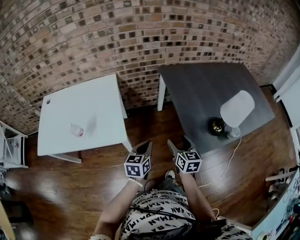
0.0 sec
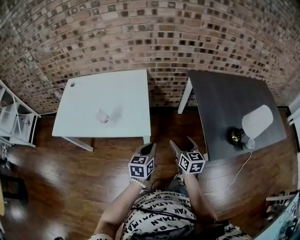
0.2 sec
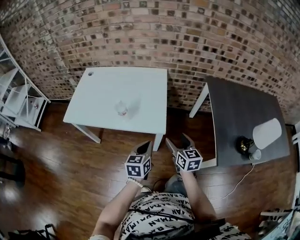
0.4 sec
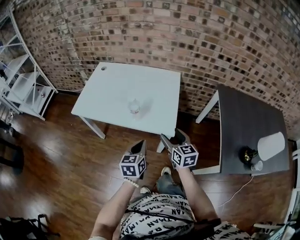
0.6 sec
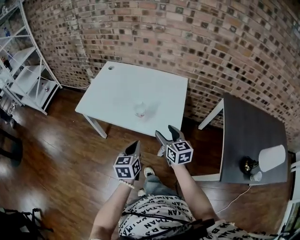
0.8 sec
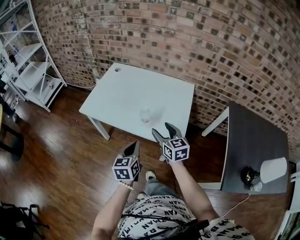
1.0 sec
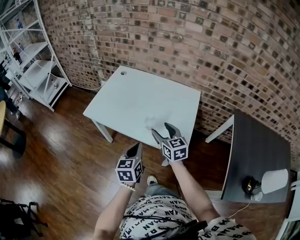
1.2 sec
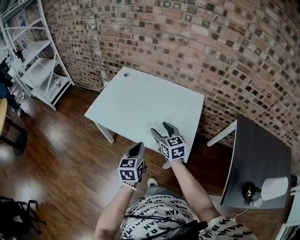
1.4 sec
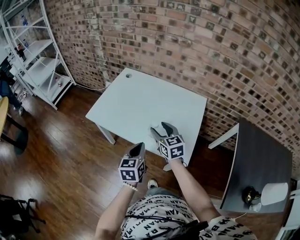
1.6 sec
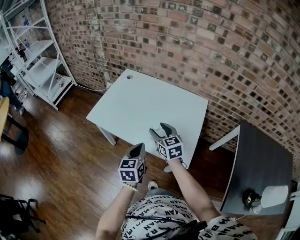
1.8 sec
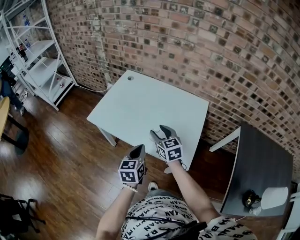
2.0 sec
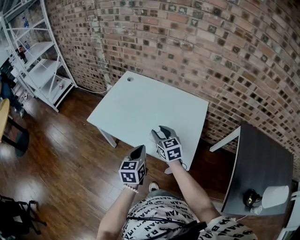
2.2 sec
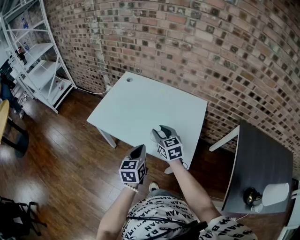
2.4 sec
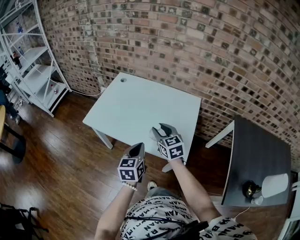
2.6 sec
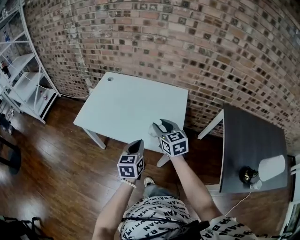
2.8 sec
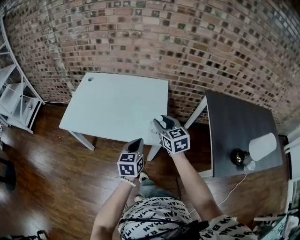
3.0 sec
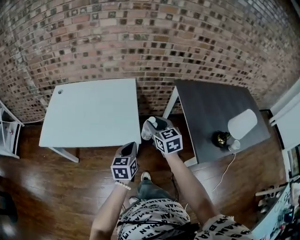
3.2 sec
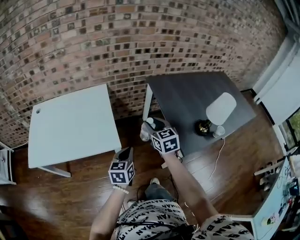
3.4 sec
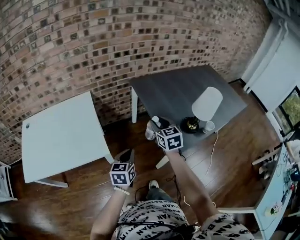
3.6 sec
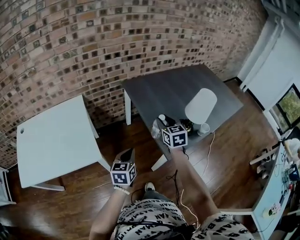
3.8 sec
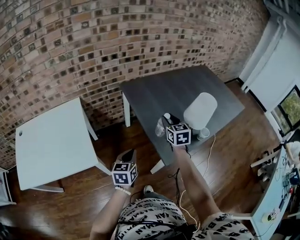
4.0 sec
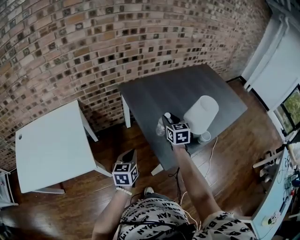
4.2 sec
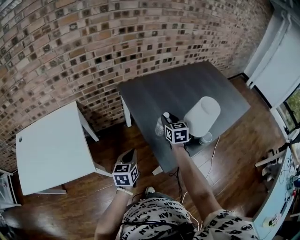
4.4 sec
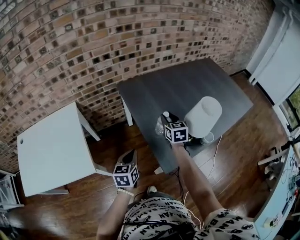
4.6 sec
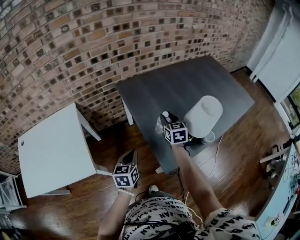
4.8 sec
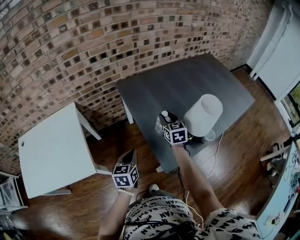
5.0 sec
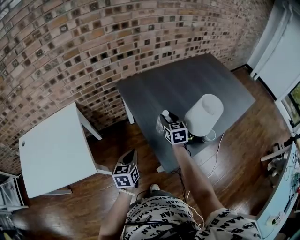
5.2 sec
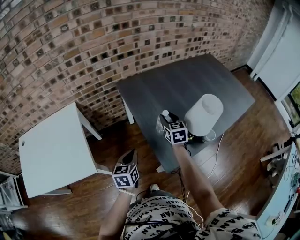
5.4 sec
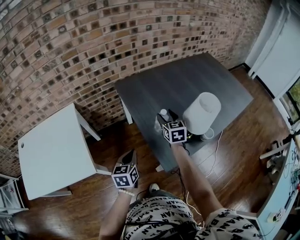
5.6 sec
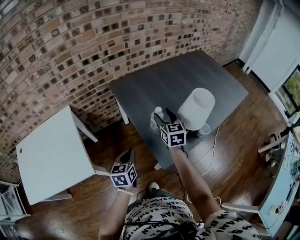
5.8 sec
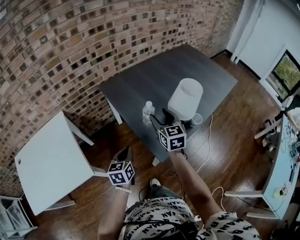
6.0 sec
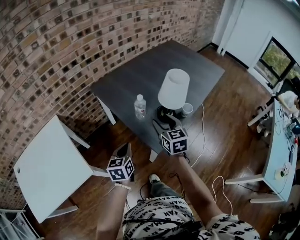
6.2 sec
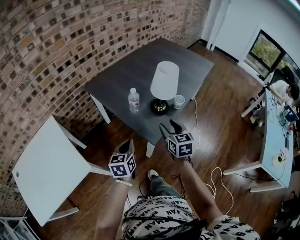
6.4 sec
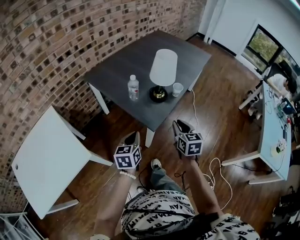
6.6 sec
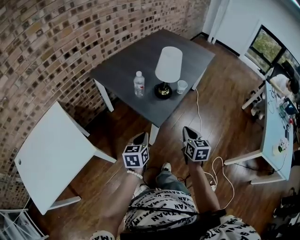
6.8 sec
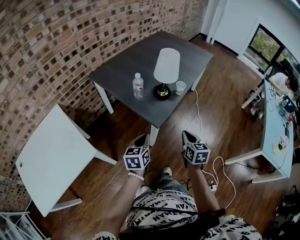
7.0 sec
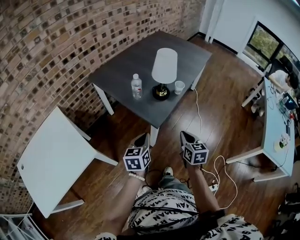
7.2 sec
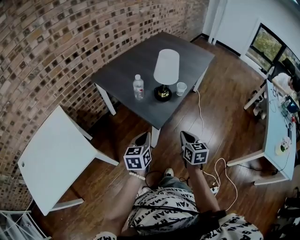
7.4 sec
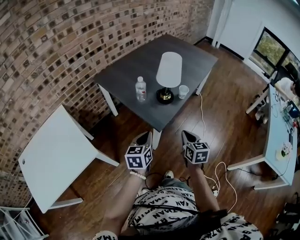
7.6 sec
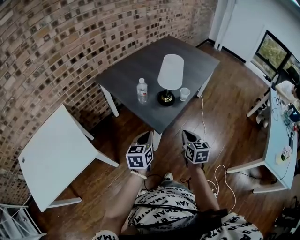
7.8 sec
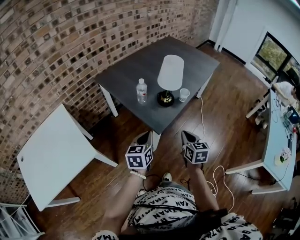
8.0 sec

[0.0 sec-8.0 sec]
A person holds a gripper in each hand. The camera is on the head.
0.0 sec to 1.6 sec: The pair of grippers is taken roughly 50 cm. The left gripper changes its angle by roughly 50 degrees. Meanwhile the right gripper swivels approximately 60 degrees.
1.6 sec to 3.2 sec: The right gripper ends up approximately 30 cm from where it was, and turns by about 30 degrees. The left gripper shifts by some 20 cm, and rotates about 30 degrees.
3.2 sec to 4.8 sec: The left gripper ends up roughly 35 cm from where it was. Meanwhile the right gripper ends up some 50 cm from where it was, and rotates approximately 30 degrees.
4.8 sec to 6.4 sec: The left gripper goes approximately 10 cm backward and to the right. Meanwhile the right gripper travels backward by approximately 25 cm, and rotates some 20 degrees.
6.4 sec to 8.0 sec: The right gripper is displaced backward and to the right by roughly 10 cm, and closes its fingers; the left gripper heads to the right, covering about 5 cm.

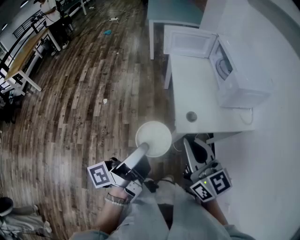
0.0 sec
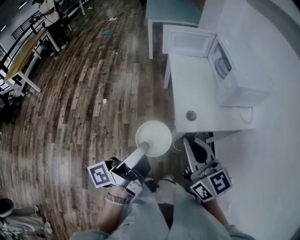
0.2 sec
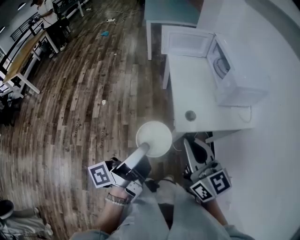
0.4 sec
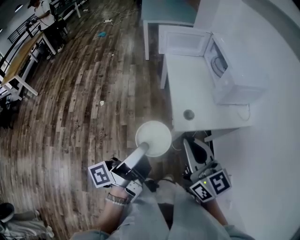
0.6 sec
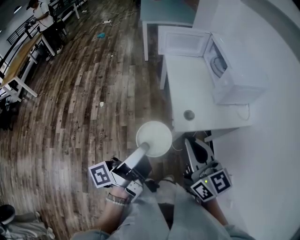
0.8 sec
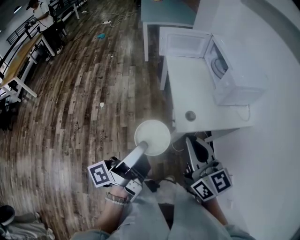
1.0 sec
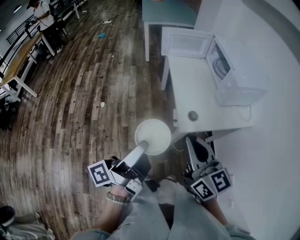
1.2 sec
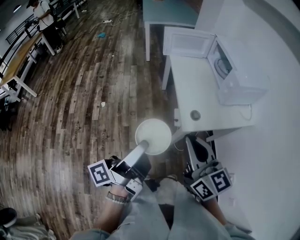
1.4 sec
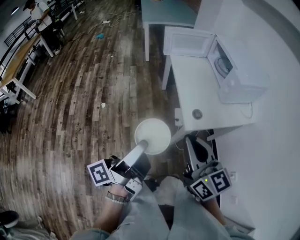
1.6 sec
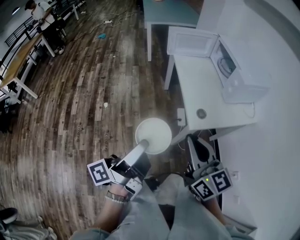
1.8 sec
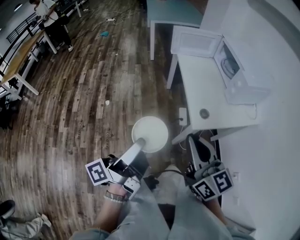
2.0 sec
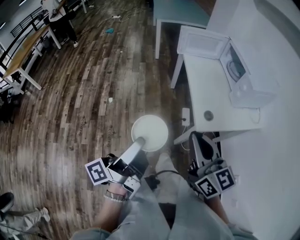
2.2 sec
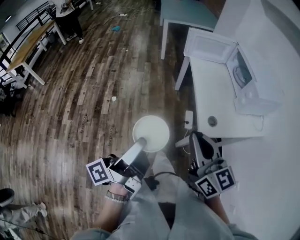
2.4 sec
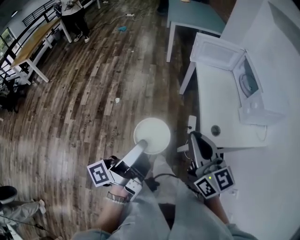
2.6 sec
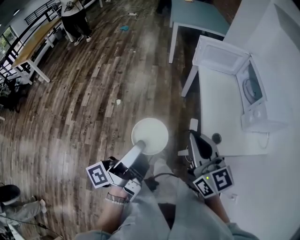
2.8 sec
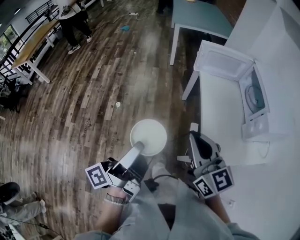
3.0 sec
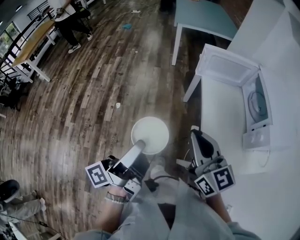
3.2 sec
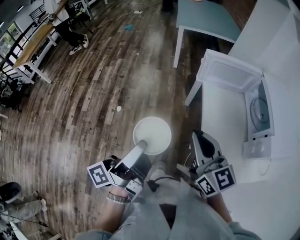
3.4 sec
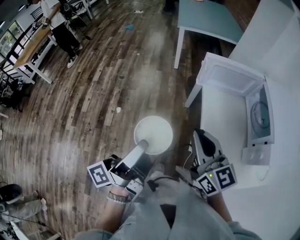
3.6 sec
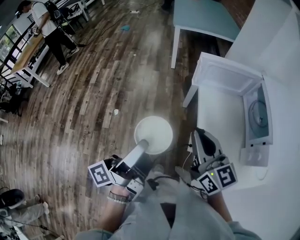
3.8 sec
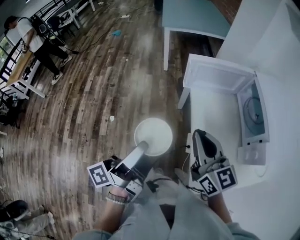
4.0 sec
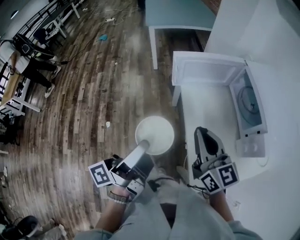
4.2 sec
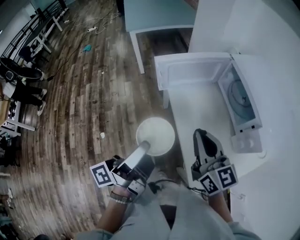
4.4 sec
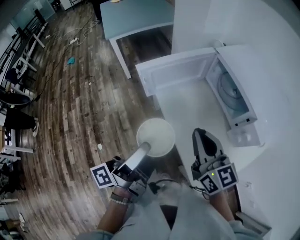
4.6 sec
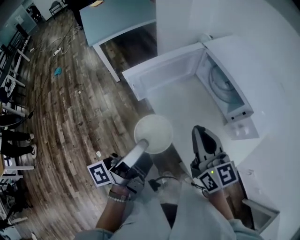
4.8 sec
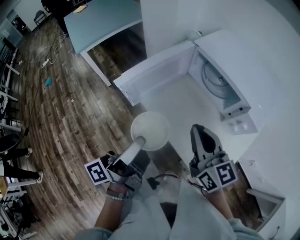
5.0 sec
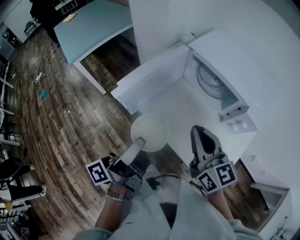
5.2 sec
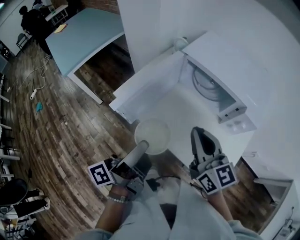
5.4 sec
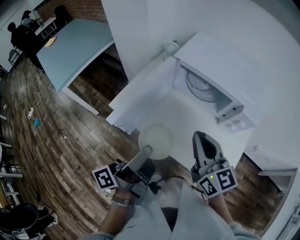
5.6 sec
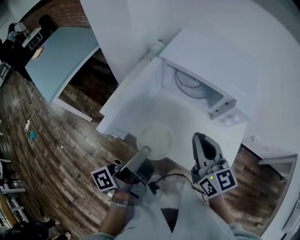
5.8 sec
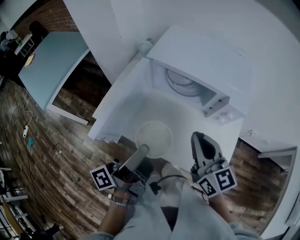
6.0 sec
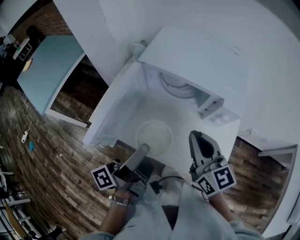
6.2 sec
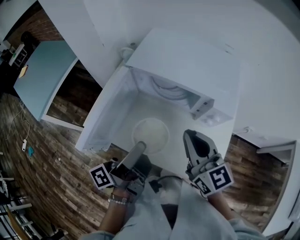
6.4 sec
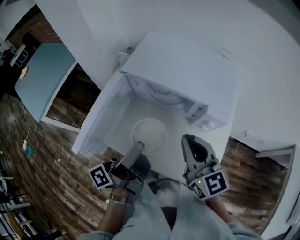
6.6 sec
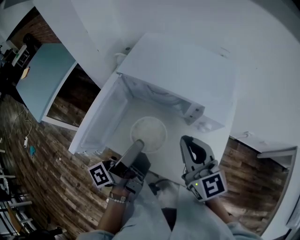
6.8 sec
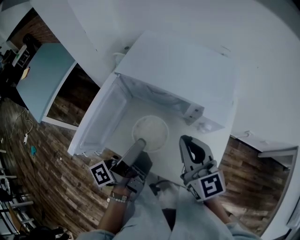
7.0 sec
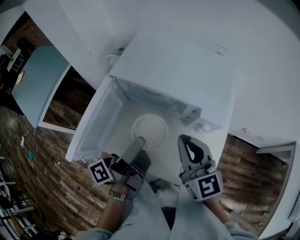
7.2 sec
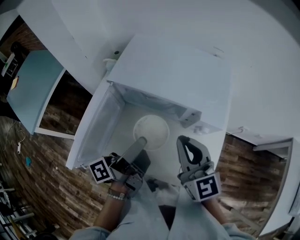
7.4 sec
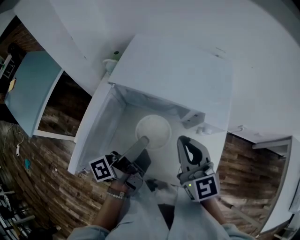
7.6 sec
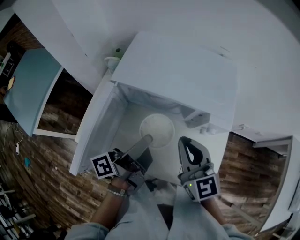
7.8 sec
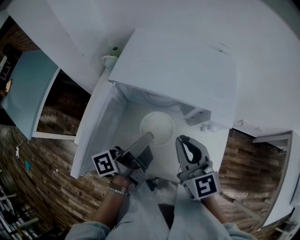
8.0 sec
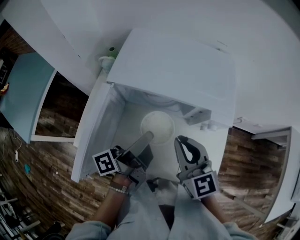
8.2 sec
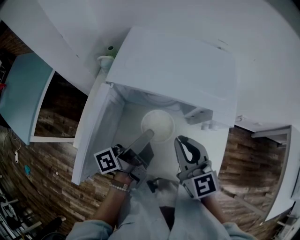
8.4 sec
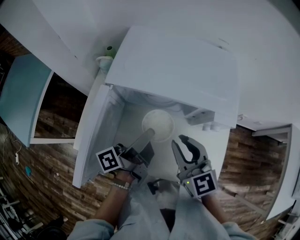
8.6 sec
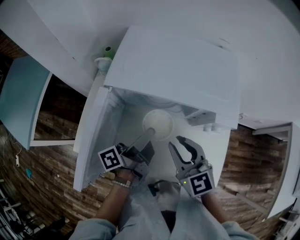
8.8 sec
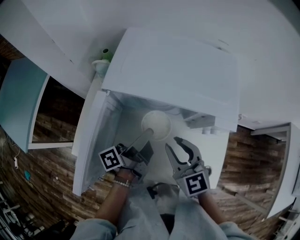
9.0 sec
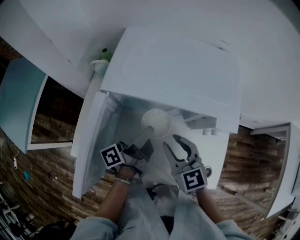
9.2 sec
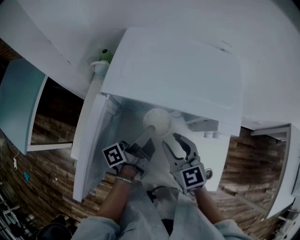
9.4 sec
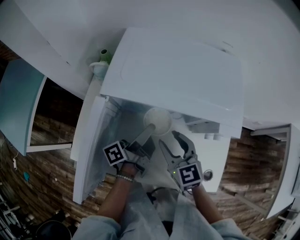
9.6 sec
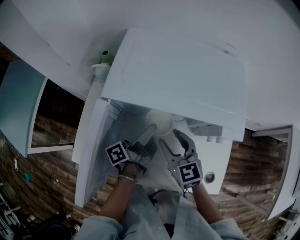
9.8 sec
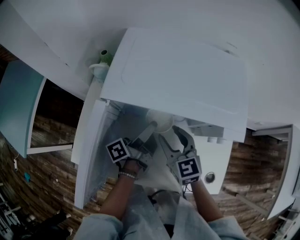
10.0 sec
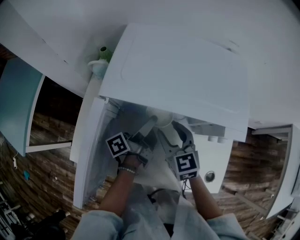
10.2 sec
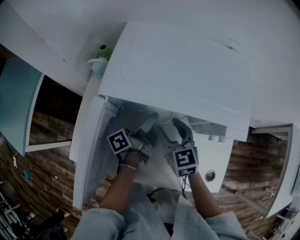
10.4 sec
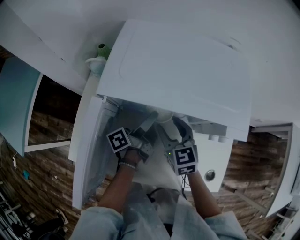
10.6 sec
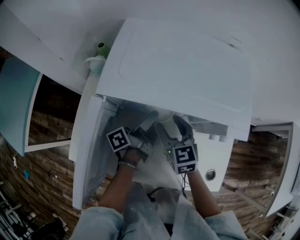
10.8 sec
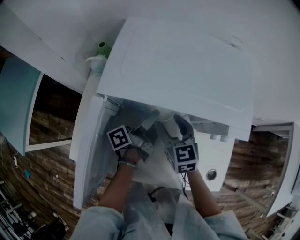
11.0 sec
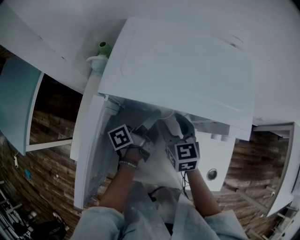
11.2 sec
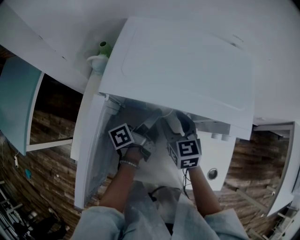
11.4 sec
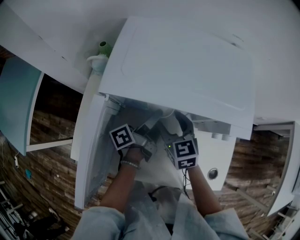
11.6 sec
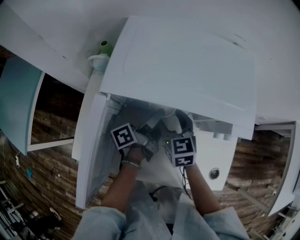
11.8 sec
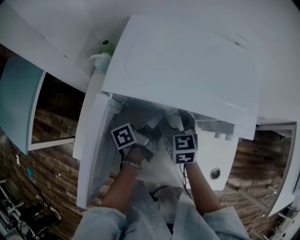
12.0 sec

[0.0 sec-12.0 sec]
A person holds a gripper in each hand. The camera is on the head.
0.0 sec to 1.6 sec: The right gripper moves roughly 5 cm.
1.6 sec to 3.0 sec: The right gripper moves approximately 20 cm.
3.0 sec to 4.4 sec: The right gripper changes place by approximately 25 cm, and swivels approximately 20 degrees.
4.4 sec to 6.0 sec: The right gripper ends up roughly 10 cm from where it was, and swivels approximately 50 degrees.
6.0 sec to 7.6 sec: The right gripper moves about 10 cm.
7.6 sec to 9.0 sec: The right gripper is displaced downward by about 10 cm, and opens its fingers.
9.0 sec to 10.4 sec: The right gripper shifts by about 15 cm, and opens its fingers.

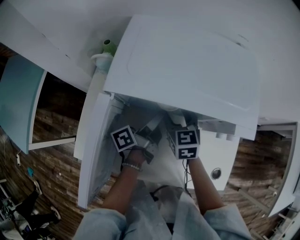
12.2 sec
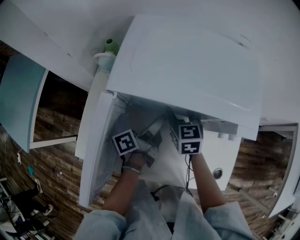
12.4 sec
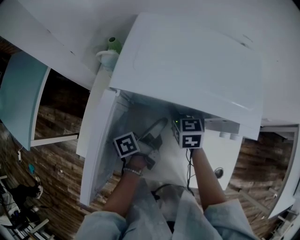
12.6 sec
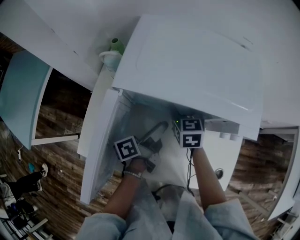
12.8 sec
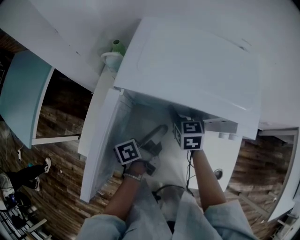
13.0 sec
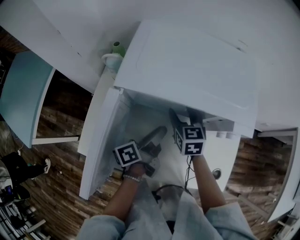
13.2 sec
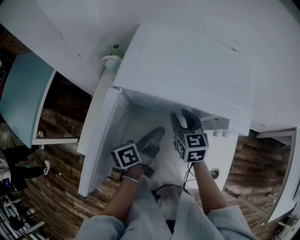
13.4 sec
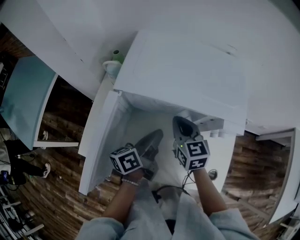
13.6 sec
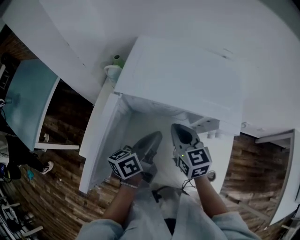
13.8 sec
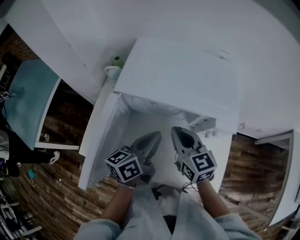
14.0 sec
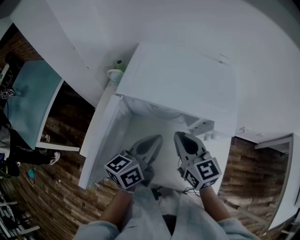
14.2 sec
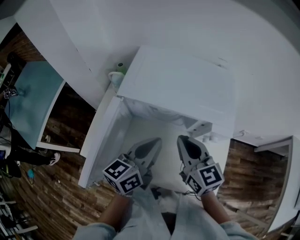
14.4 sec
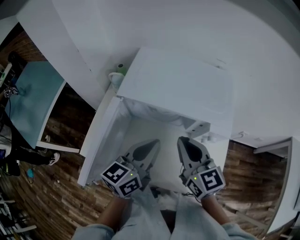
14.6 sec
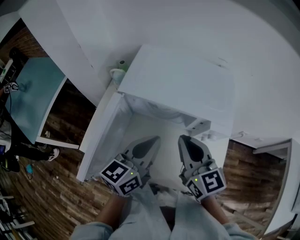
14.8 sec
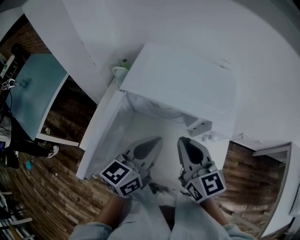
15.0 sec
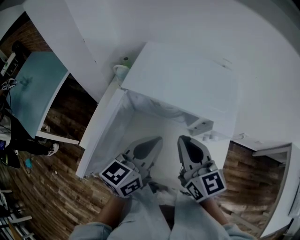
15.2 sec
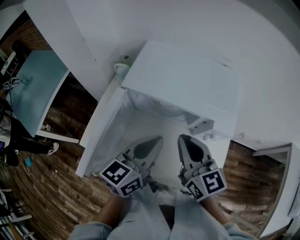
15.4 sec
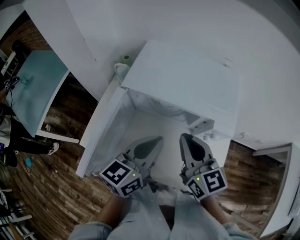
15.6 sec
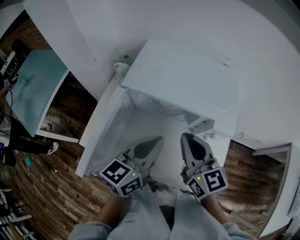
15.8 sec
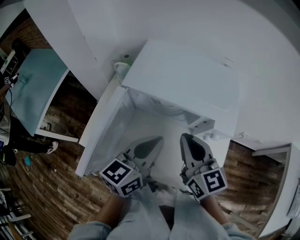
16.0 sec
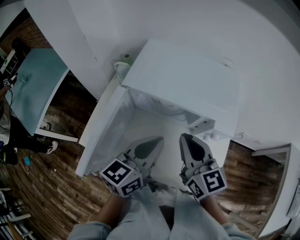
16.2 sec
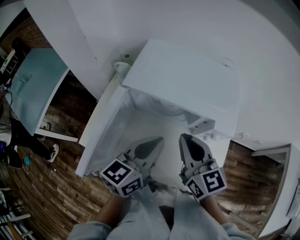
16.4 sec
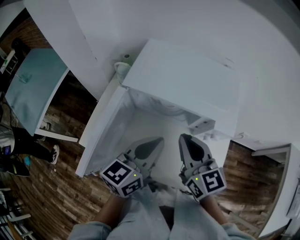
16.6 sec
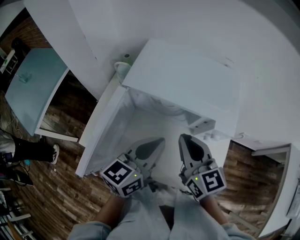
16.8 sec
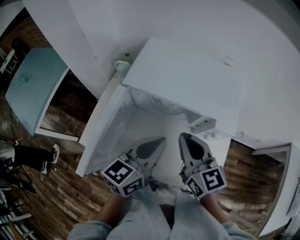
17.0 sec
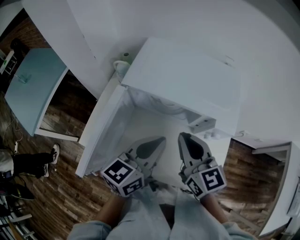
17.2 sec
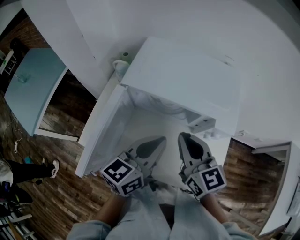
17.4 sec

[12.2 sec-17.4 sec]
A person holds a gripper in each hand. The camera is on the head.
12.2 sec to 14.0 sec: The right gripper is displaced upward by approximately 10 cm, and closes.
14.0 sec to 15.6 sec: The right gripper goes roughly 10 cm upward.
